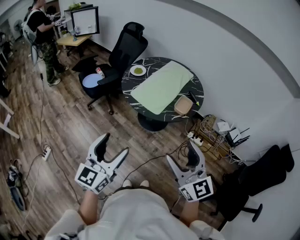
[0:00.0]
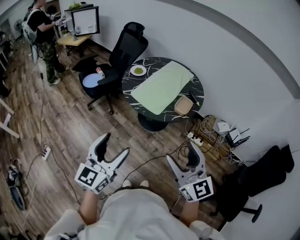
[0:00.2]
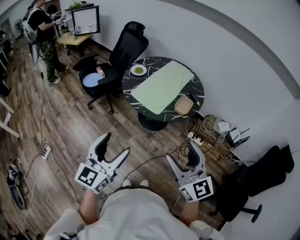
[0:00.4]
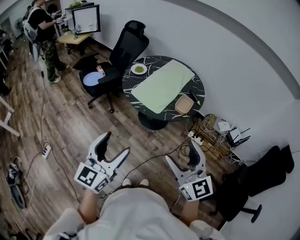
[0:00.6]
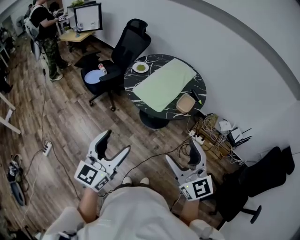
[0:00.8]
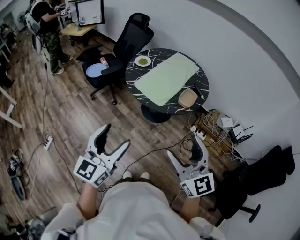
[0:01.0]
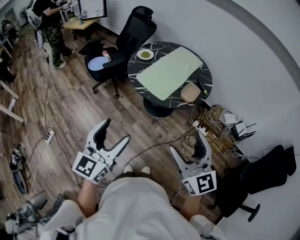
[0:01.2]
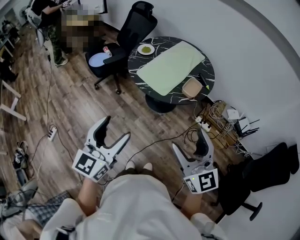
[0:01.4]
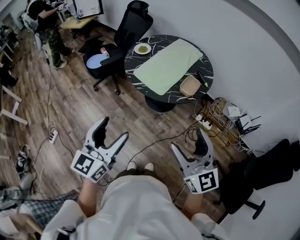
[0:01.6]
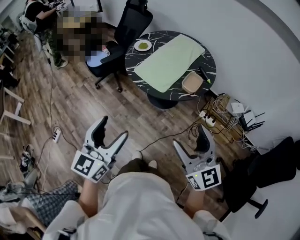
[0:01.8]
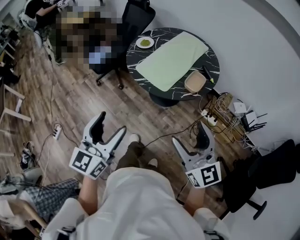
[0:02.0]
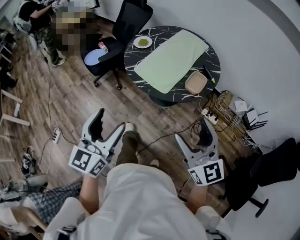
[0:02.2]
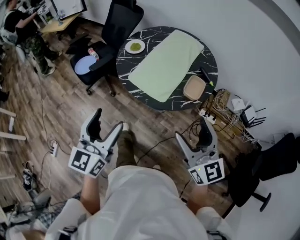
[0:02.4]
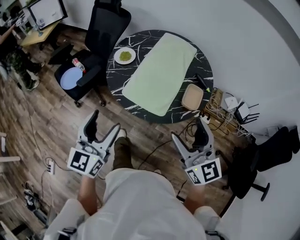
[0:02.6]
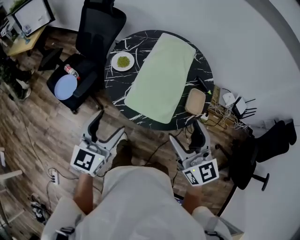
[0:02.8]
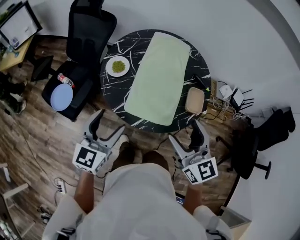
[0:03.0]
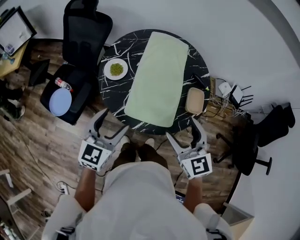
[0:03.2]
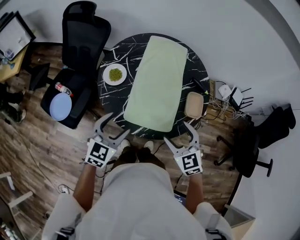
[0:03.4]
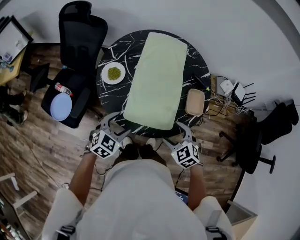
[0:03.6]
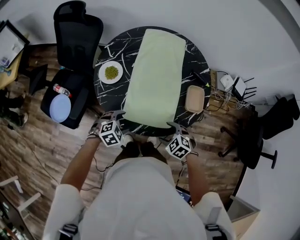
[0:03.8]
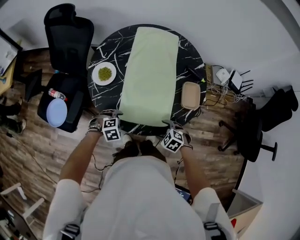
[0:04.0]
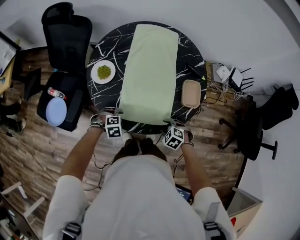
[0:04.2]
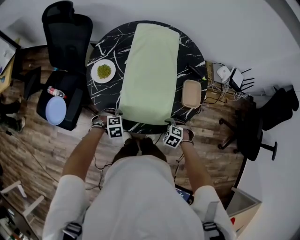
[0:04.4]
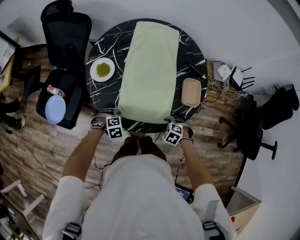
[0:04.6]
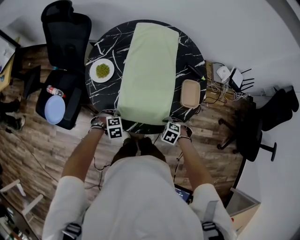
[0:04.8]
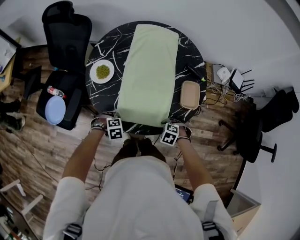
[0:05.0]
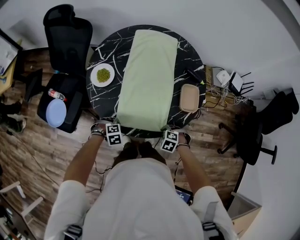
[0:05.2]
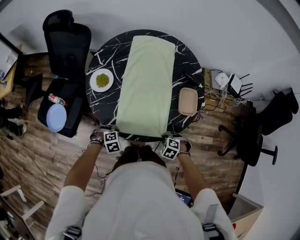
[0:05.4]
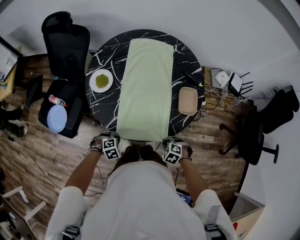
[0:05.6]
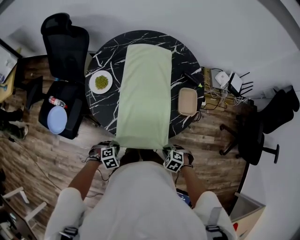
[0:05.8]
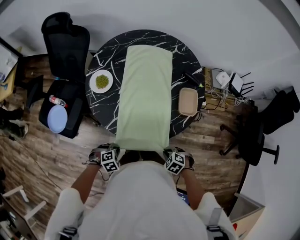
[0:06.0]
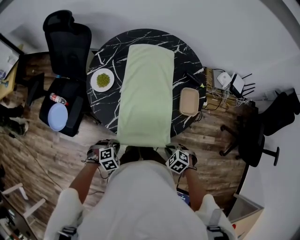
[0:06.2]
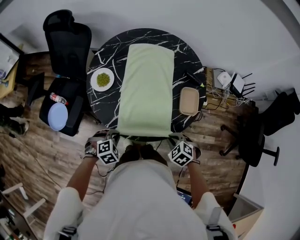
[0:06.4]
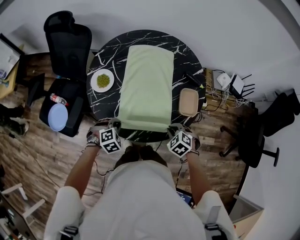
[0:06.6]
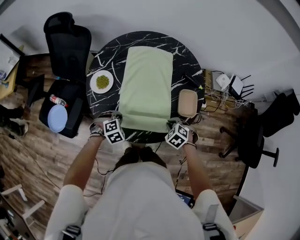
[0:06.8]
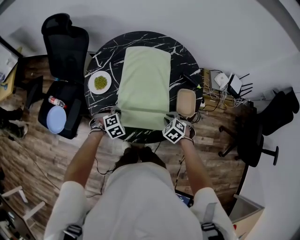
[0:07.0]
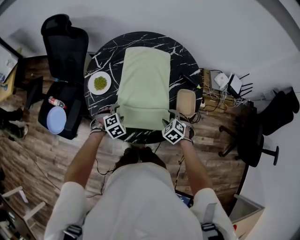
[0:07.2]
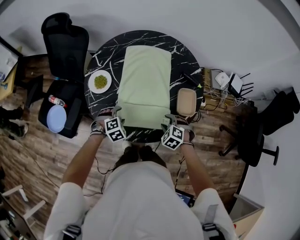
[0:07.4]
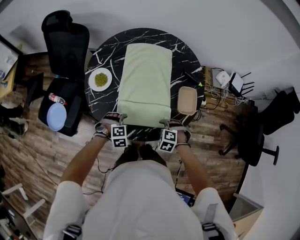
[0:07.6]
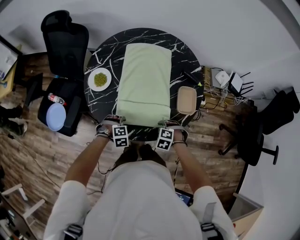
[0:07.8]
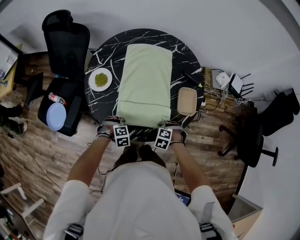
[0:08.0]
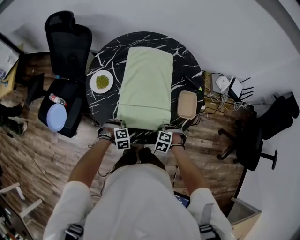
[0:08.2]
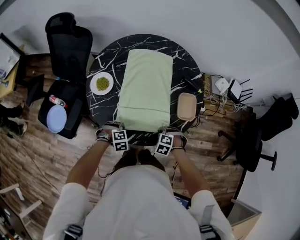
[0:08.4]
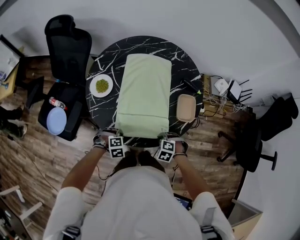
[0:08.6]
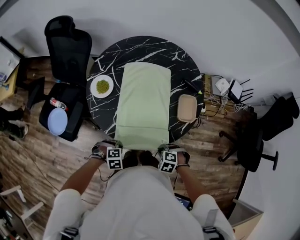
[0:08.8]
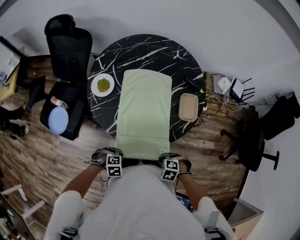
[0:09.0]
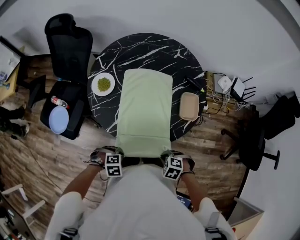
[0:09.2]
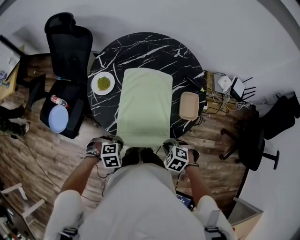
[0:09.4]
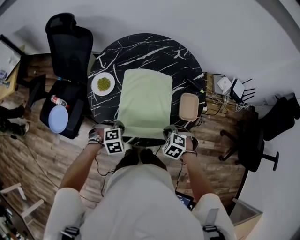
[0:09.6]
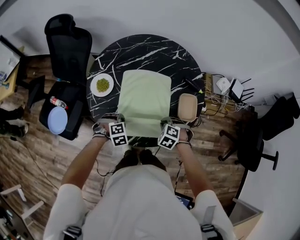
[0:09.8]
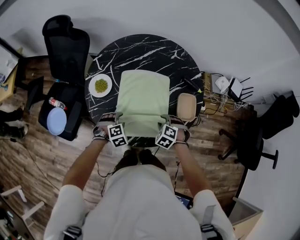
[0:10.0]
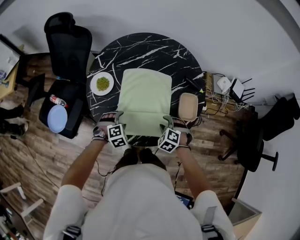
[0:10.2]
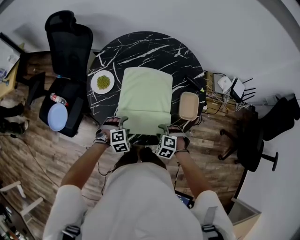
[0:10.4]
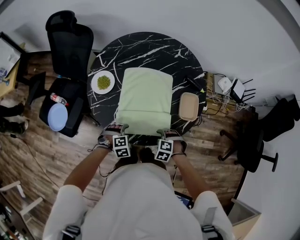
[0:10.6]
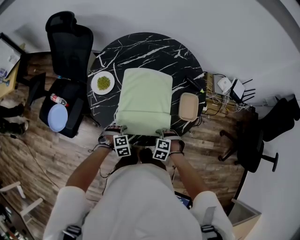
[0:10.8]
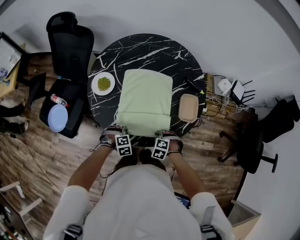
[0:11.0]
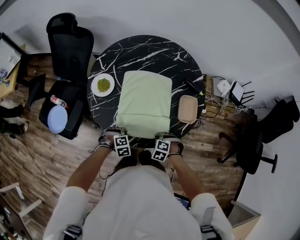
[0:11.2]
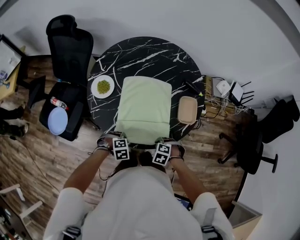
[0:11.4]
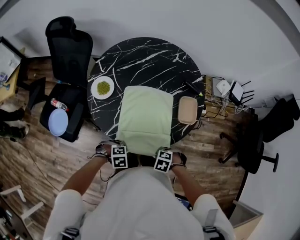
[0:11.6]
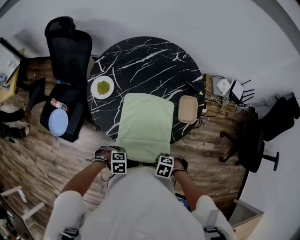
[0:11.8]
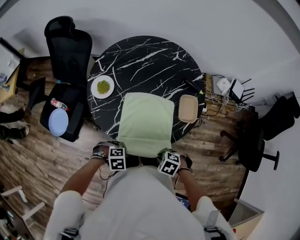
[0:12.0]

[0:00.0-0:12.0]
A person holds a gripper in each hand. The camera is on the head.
0:00.0 to 0:01.6: The right gripper changes place by roughly 5 cm.
0:01.6 to 0:03.0: The left gripper changes place by about 50 cm, and rotates some 30 degrees. Meanwhile the right gripper ends up about 40 cm from where it was, and rotates some 30 degrees.
0:03.0 to 0:04.4: Both grippers move downward, some 35 cm. The left gripper tilts its fingers some 60 degrees downward; the right gripper tilts its fingers approximately 70 degrees downward, and closes its fingers.
0:04.4 to 0:06.0: The left gripper ends up some 10 cm from where it was, and closes up, while the right gripper moves roughly 10 cm, and closes.
0:06.0 to 0:07.6: The left gripper changes place by roughly 15 cm, changes its angle by approximately 20 degrees, and opens, while the right gripper rotates approximately 20 degrees, and opens.
0:07.6 to 0:09.0: The right gripper changes place by some 15 cm, and closes its fingers. The left gripper shifts by approximately 15 cm, rotates roughly 20 degrees, and closes its fingers.
0:09.0 to 0:10.4: The right gripper changes place by about 15 cm, and opens, while the left gripper ends up approximately 20 cm from where it was, rotates about 30 degrees, and opens up.
0:10.4 to 0:12.0: The right gripper ends up about 15 cm from where it was, swivels about 30 degrees, and closes, while the left gripper travels downward and back again, about 5 cm each way, rotates some 30 degrees, and closes its fingers.

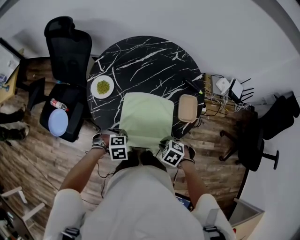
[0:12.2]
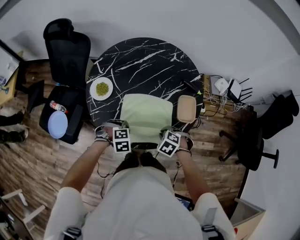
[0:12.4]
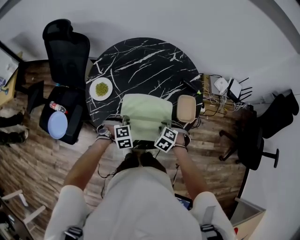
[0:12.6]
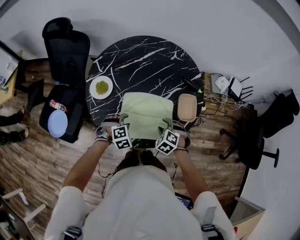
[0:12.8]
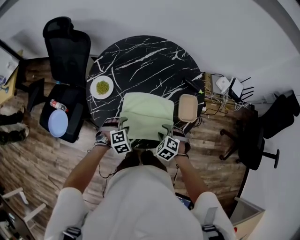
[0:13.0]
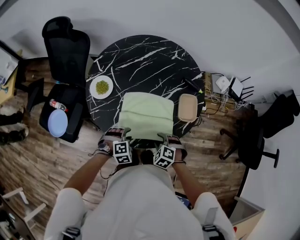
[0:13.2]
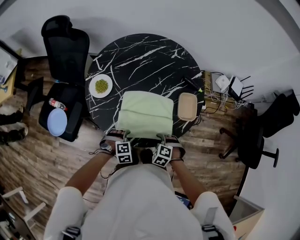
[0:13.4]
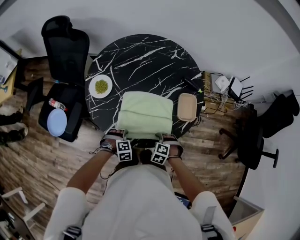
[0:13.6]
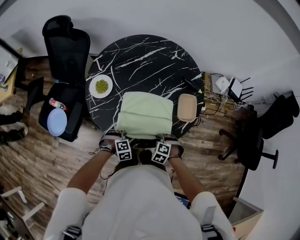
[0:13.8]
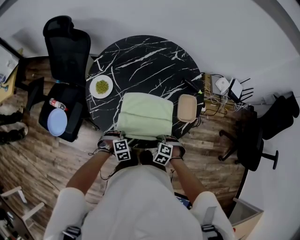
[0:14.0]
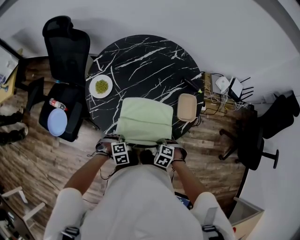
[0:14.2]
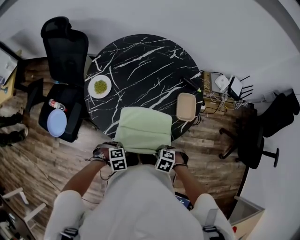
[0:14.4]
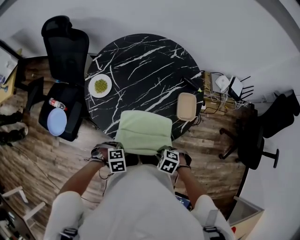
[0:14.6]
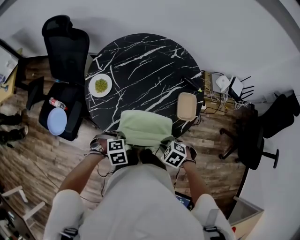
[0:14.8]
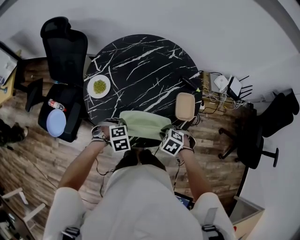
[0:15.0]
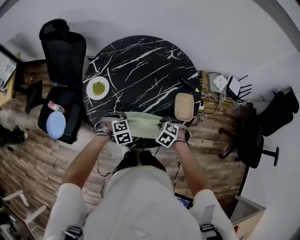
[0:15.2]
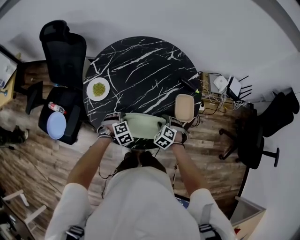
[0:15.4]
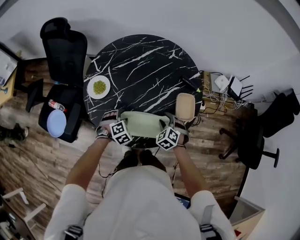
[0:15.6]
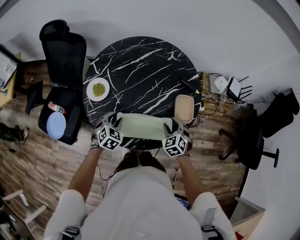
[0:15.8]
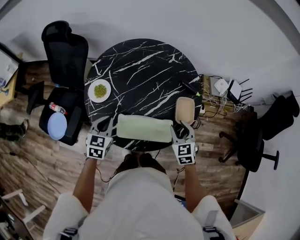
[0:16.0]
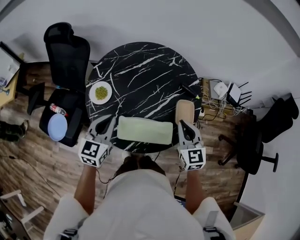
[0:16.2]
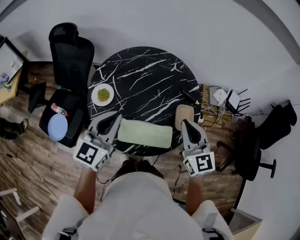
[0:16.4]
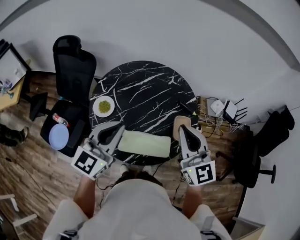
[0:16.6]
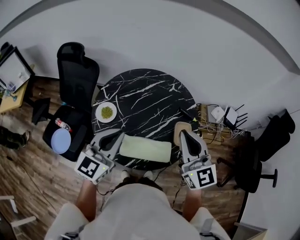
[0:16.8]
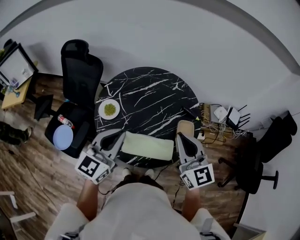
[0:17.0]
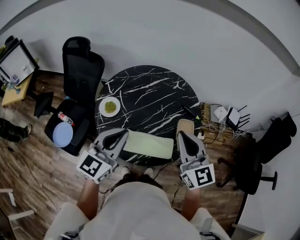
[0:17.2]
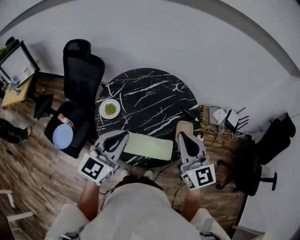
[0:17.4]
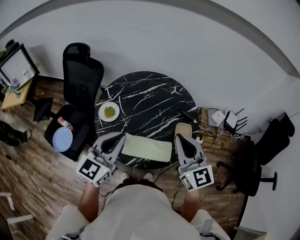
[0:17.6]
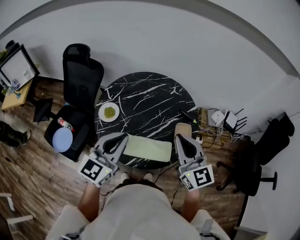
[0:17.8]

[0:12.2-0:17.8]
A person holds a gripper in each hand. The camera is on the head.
0:12.2 to 0:13.6: The two grippers go about 10 cm downward. The left gripper opens up; the right gripper opens its fingers.
0:13.6 to 0:15.0: Both grippers travel together upward, roughly 10 cm. The left gripper closes, while the right gripper closes.
0:15.0 to 0:16.4: The two grippers go approximately 30 cm upward. The right gripper angles its fingers upward, by some 70 degrees, and opens, then closes again. The left gripper angles its fingers upward, by roughly 70 degrees, and opens and closes again.
0:16.4 to 0:17.8: The right gripper shifts some 10 cm upward and backward. Meanwhile the left gripper moves backward, approximately 5 cm.

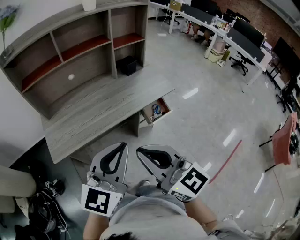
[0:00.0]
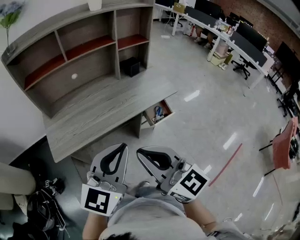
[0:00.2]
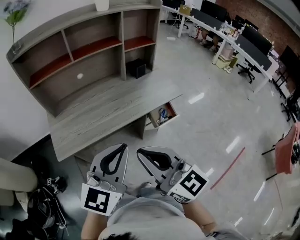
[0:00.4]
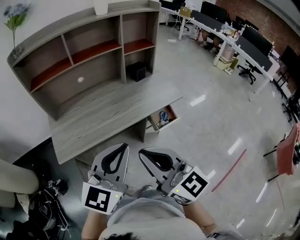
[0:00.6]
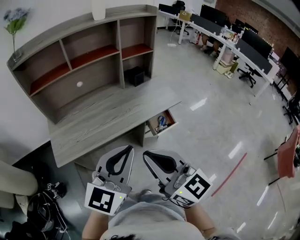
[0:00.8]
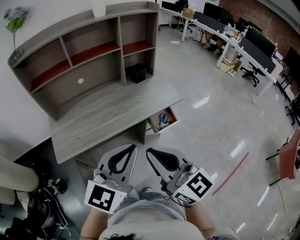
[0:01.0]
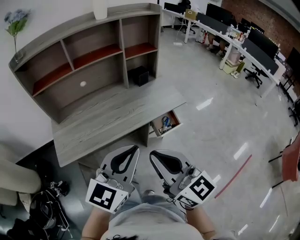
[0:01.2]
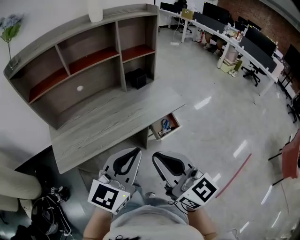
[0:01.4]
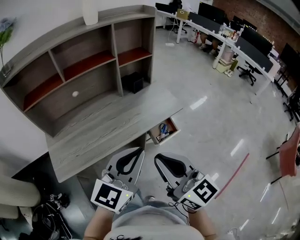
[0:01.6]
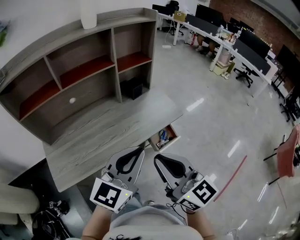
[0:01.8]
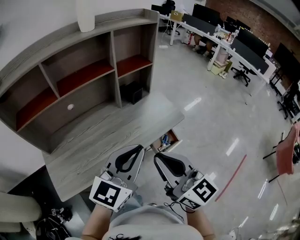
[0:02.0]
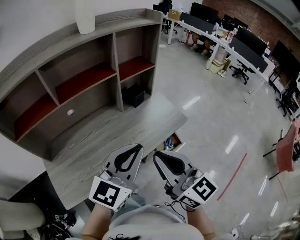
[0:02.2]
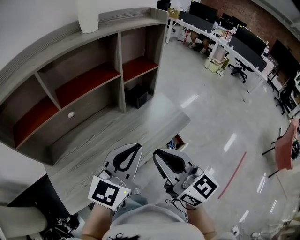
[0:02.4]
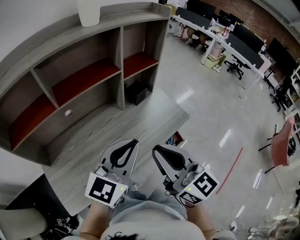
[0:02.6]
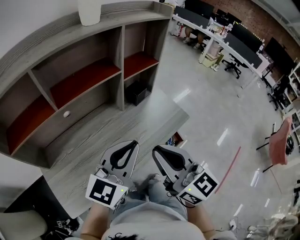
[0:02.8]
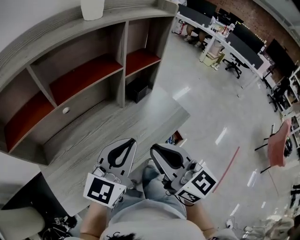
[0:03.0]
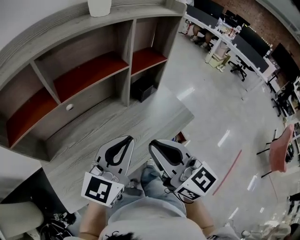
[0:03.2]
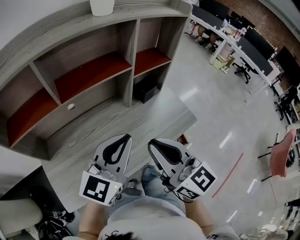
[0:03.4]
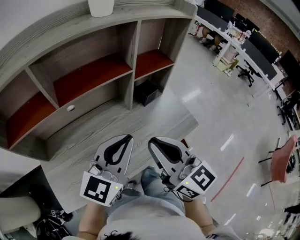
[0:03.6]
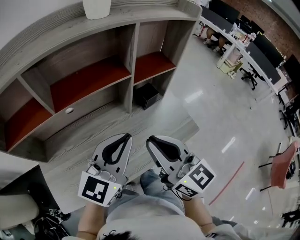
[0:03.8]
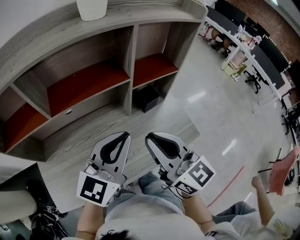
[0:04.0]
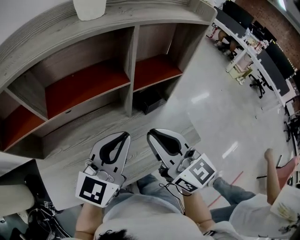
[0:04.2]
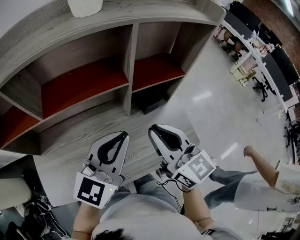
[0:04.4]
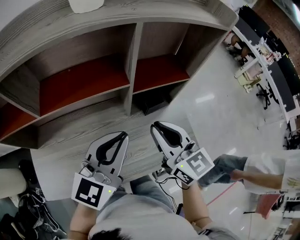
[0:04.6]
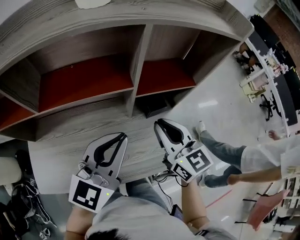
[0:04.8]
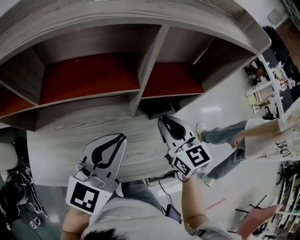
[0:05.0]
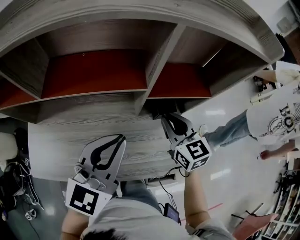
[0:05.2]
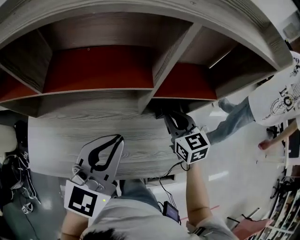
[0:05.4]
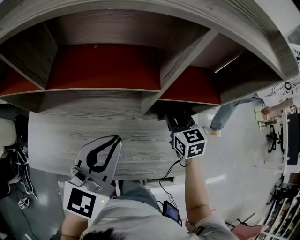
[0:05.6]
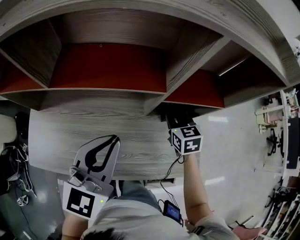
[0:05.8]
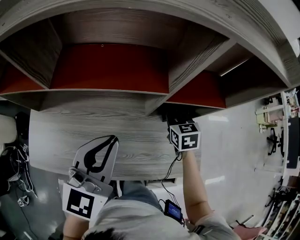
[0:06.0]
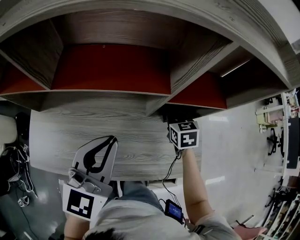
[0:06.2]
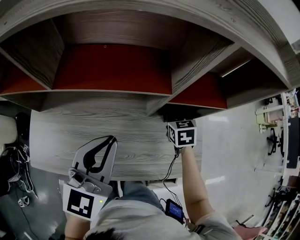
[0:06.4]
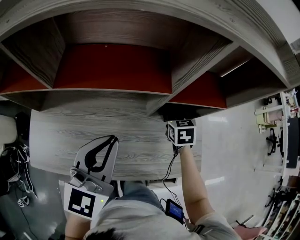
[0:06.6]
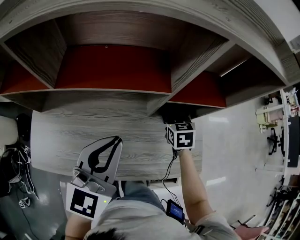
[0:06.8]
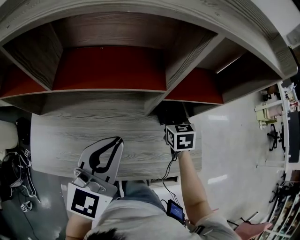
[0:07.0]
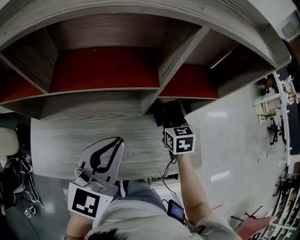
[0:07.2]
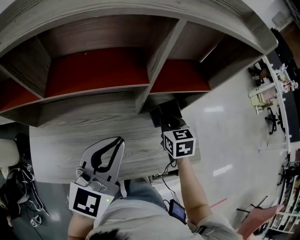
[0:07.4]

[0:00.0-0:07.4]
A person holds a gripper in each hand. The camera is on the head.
0:00.0 to 0:01.4: The right gripper heads forward and to the right, covering some 10 cm; the left gripper shifts about 5 cm forward.
0:01.4 to 0:03.0: Both grippers move forward and to the left, about 25 cm.
0:03.0 to 0:04.4: The two grippers go about 15 cm forward.
0:04.4 to 0:06.0: The right gripper goes roughly 30 cm downward and forward, and tilts its fingers about 40 degrees downward, while the left gripper shifts about 5 cm to the left, and changes its angle by some 30 degrees.
0:06.0 to 0:07.4: The right gripper is displaced backward by roughly 5 cm.
